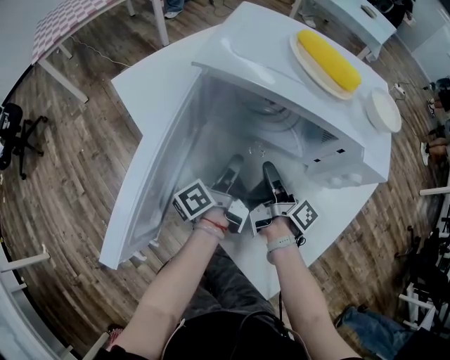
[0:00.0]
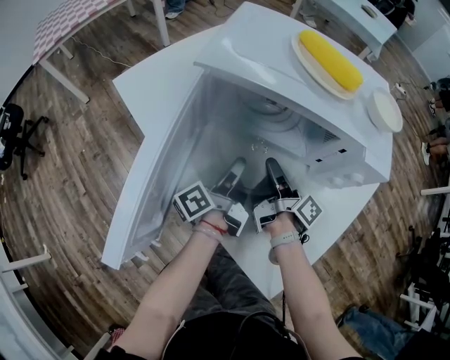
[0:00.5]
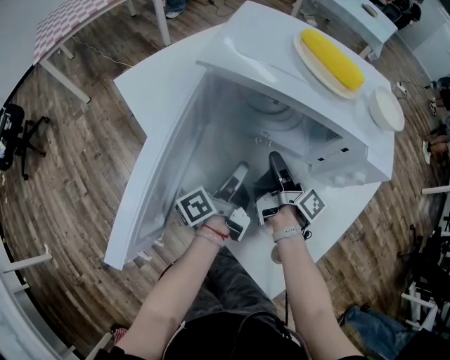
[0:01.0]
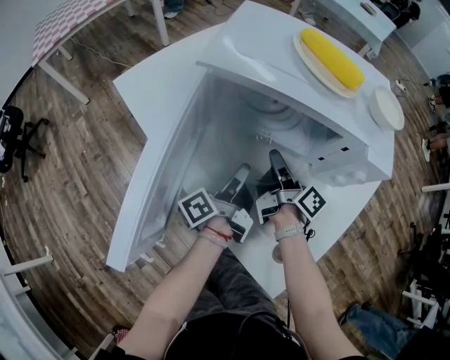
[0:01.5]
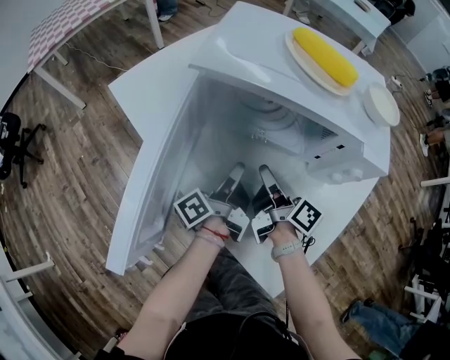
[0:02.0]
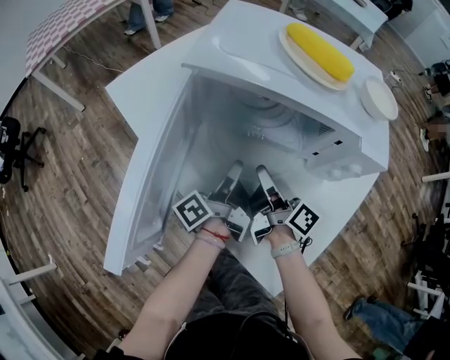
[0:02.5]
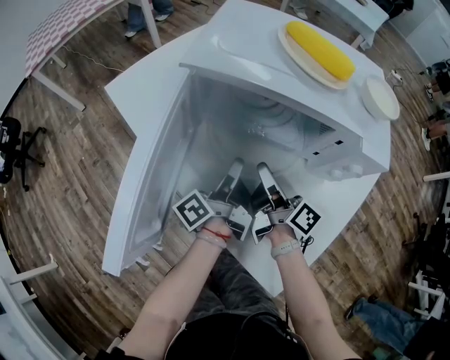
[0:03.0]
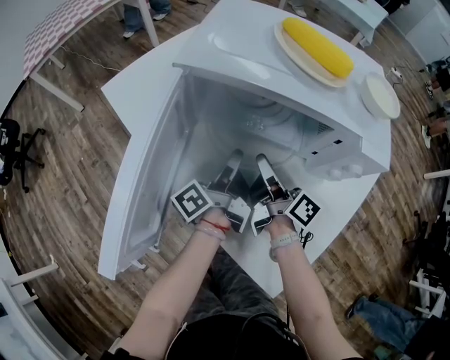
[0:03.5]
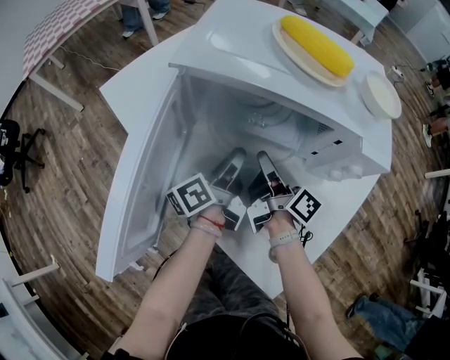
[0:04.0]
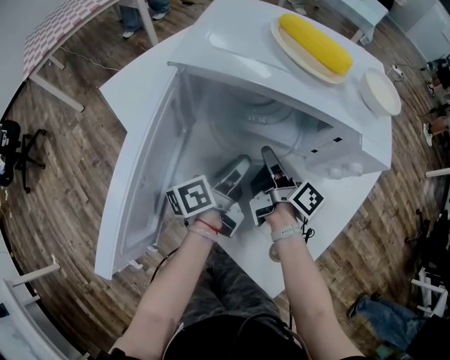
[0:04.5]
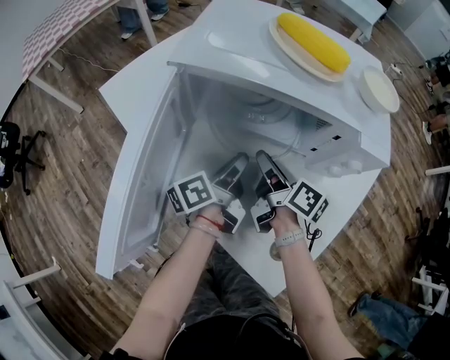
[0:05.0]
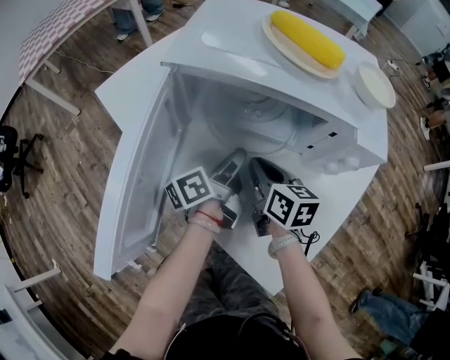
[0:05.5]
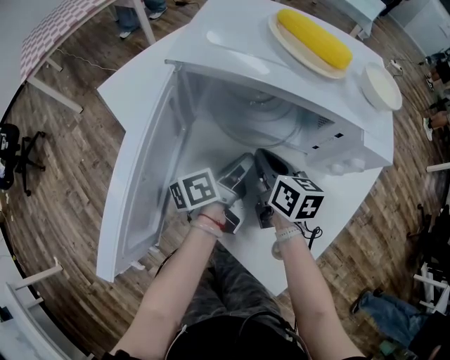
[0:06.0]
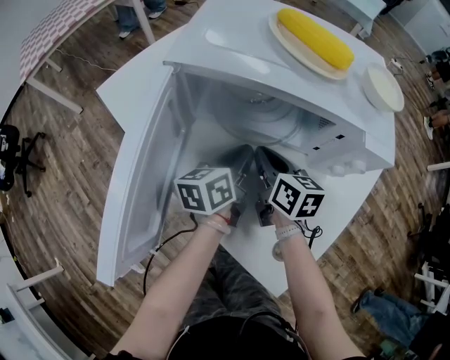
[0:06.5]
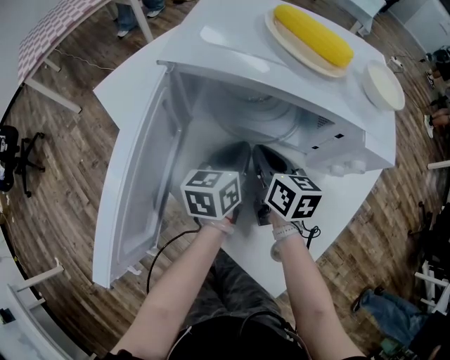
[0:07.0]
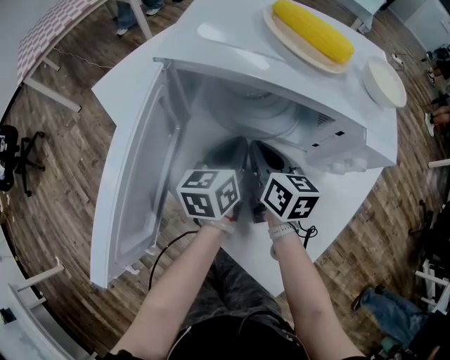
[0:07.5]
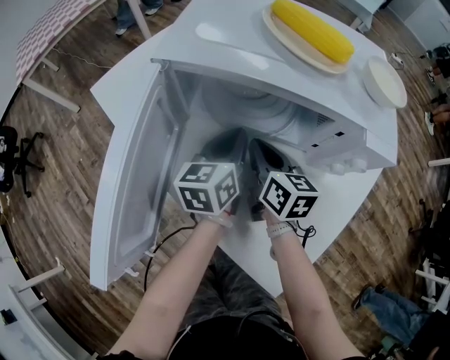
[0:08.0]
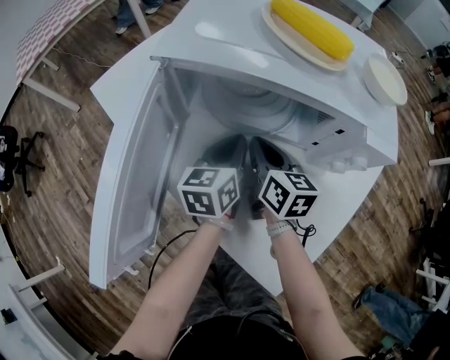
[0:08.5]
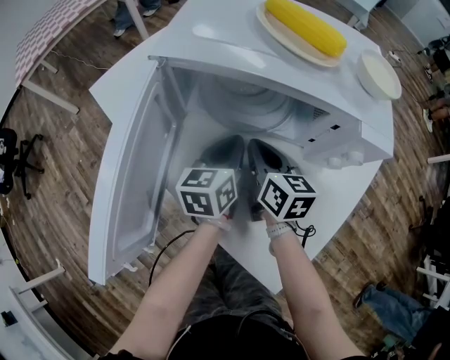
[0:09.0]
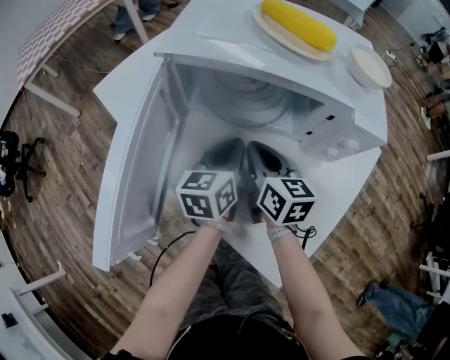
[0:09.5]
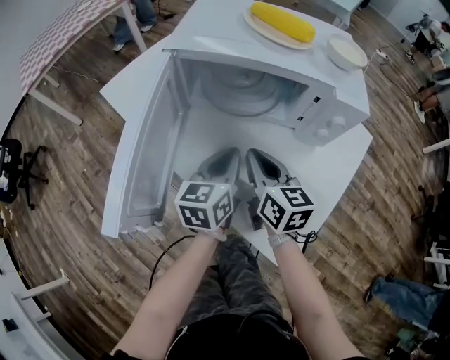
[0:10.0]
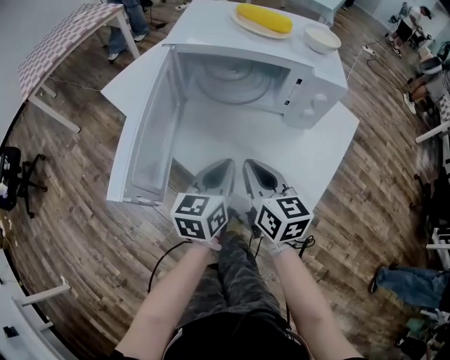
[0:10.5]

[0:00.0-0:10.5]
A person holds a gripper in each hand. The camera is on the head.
0:04.0 to 0:06.5: The right gripper rotates around the line of its fingers by some 40 degrees, counterclockwise from behind.
0:08.5 to 0:10.5: The right gripper moves some 20 cm.

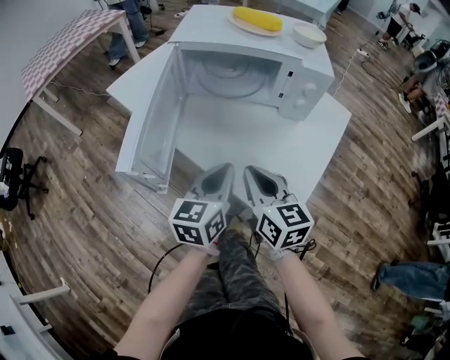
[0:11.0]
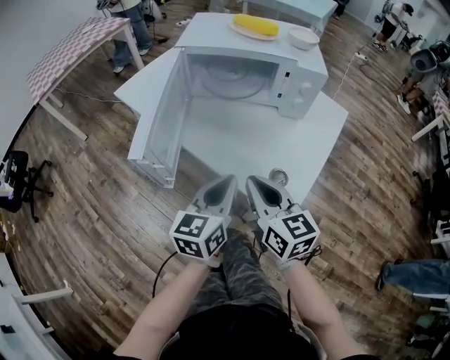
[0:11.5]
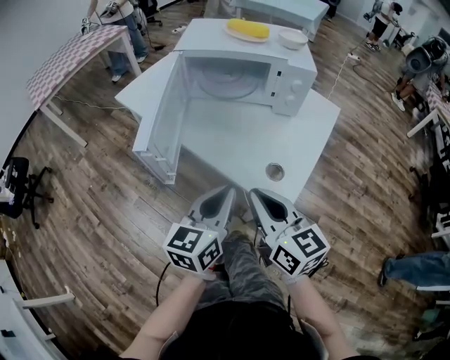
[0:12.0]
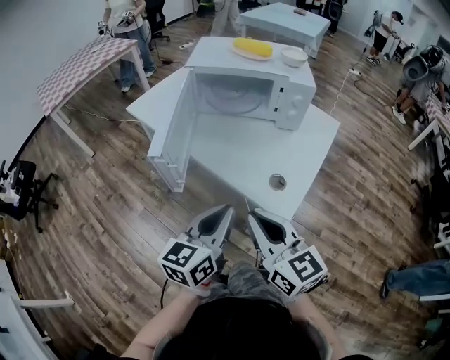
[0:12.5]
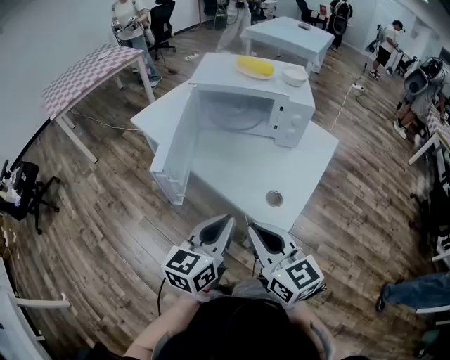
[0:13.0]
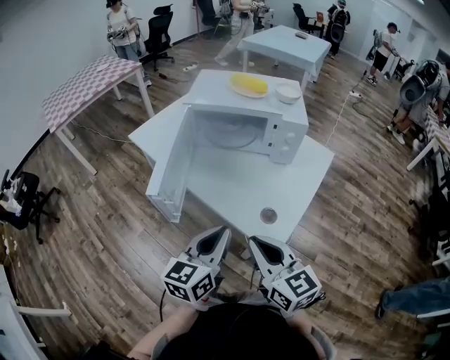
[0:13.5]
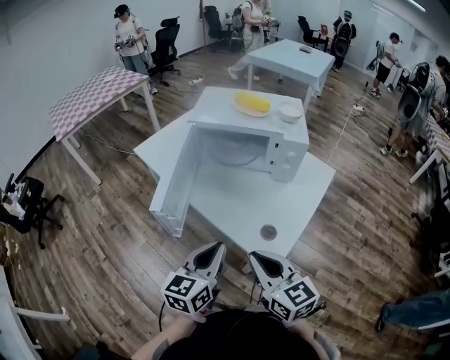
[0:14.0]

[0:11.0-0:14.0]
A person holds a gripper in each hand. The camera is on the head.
0:11.0 to 0:12.5: The right gripper changes place by approximately 20 cm.

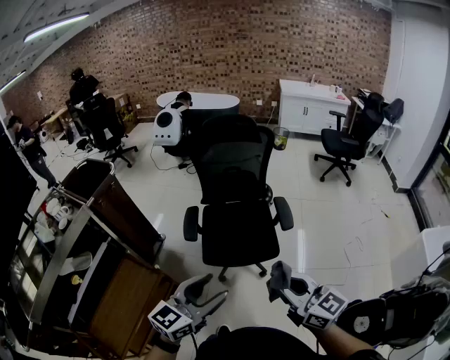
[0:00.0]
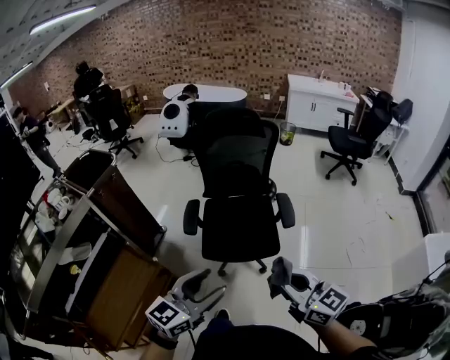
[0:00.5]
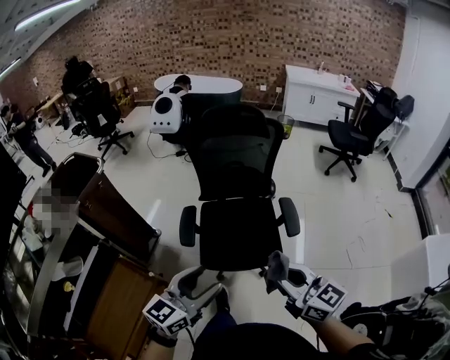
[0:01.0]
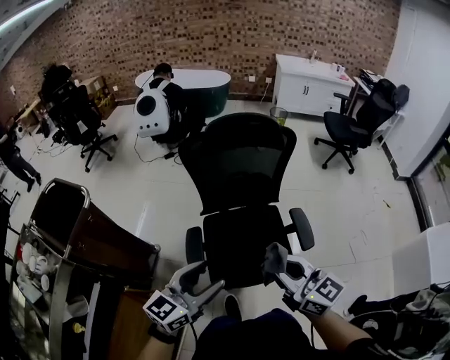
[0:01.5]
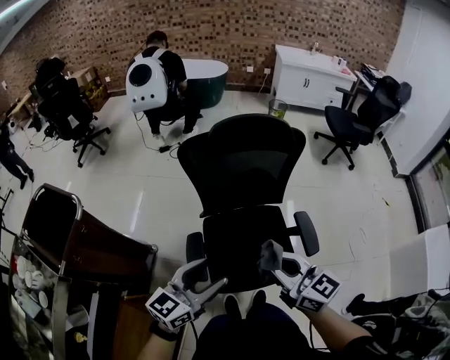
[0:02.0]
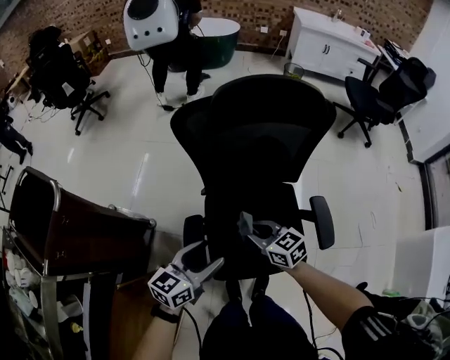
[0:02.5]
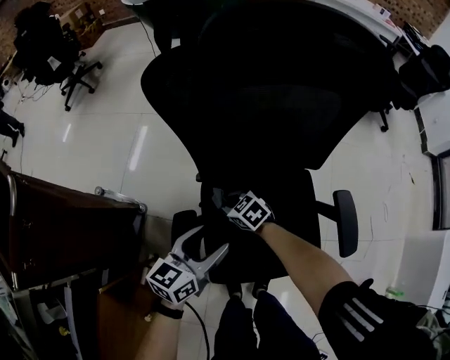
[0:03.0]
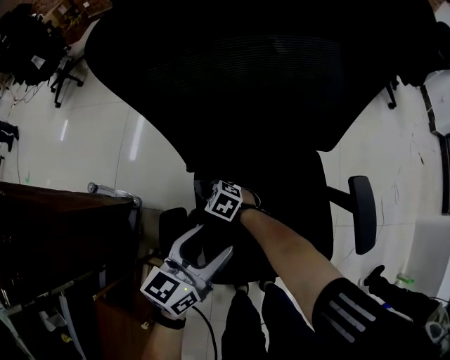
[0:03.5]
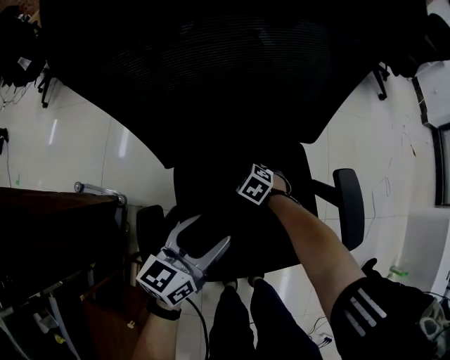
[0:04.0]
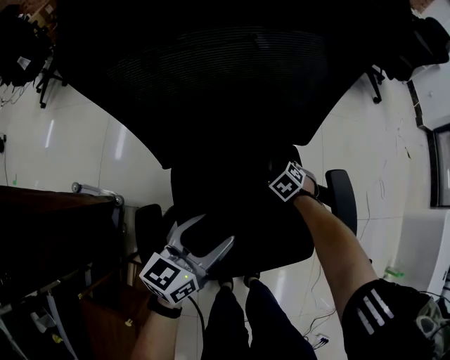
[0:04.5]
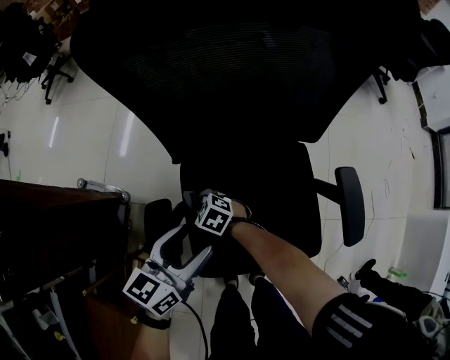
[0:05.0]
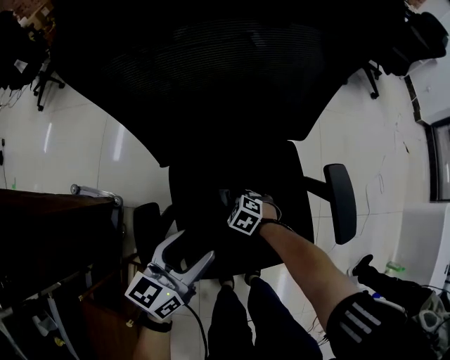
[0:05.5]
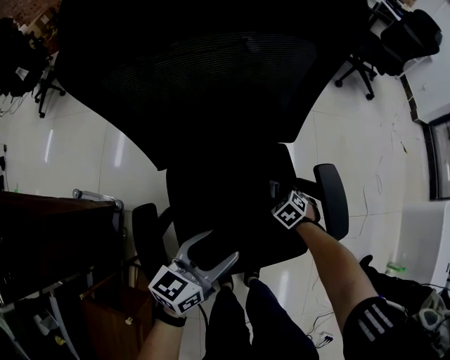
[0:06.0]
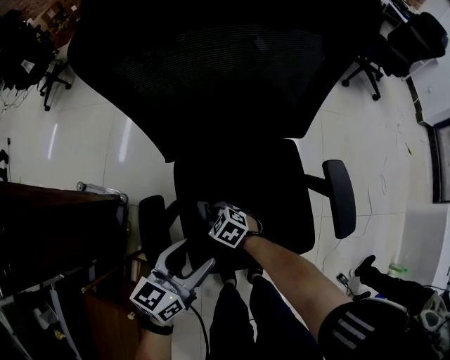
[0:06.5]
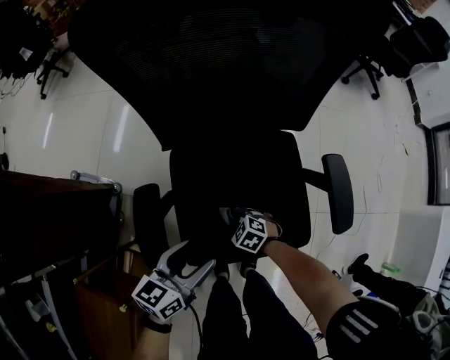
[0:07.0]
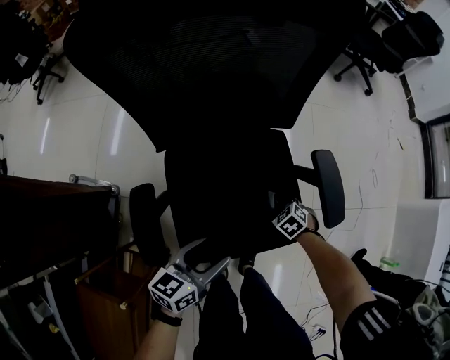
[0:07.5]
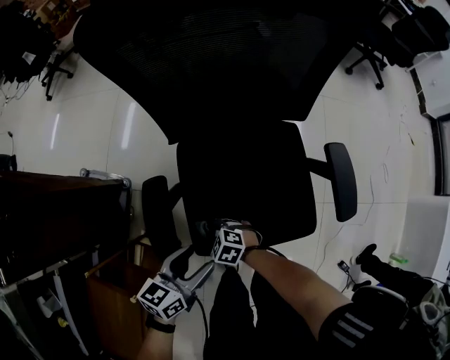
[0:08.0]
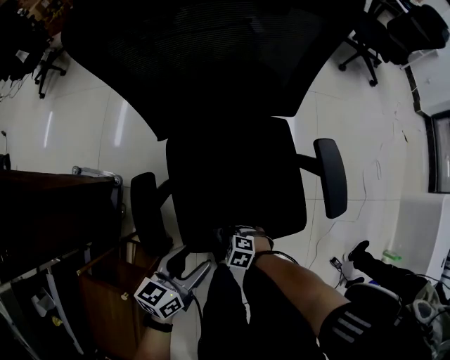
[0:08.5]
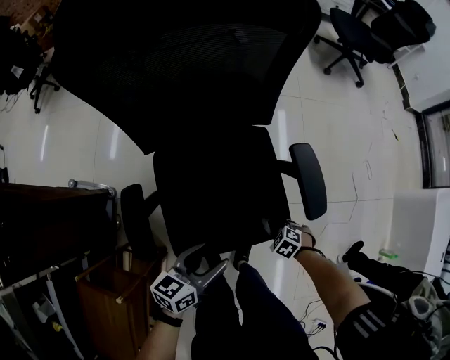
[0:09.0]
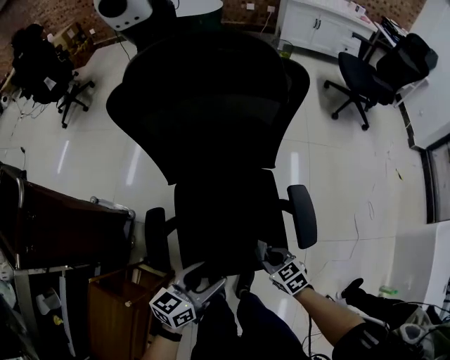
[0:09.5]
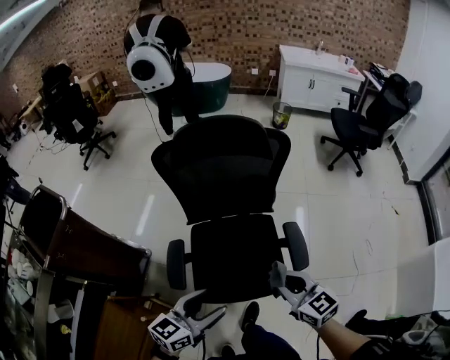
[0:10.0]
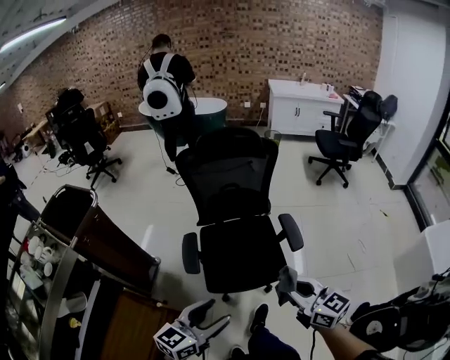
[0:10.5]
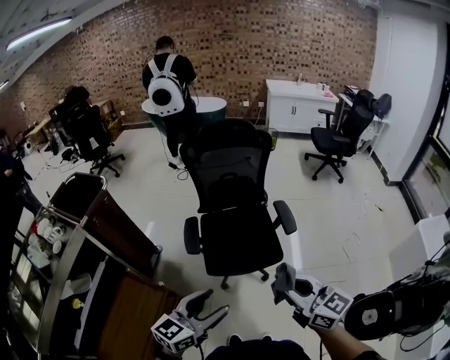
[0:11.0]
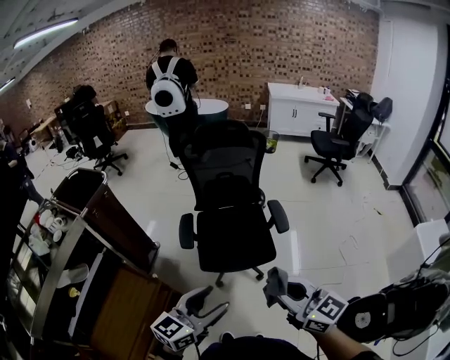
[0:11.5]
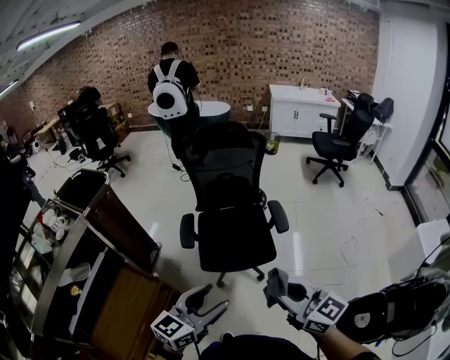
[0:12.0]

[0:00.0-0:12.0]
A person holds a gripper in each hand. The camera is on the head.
0:00.0 to 0:02.0: The two grippers go about 40 cm forward.
0:02.0 to 0:04.0: The right gripper is displaced downward and forward by approximately 70 cm, and points its fingers about 60 degrees further downward. The left gripper moves downward and forward, some 40 cm.
0:04.0 to 0:06.0: The left gripper moves about 10 cm, while the right gripper moves about 20 cm.
0:06.0 to 0:08.0: The left gripper shifts by some 15 cm; the right gripper swings up and down, approximately 5 cm each way, with 2 reversals, and swivels approximately 40 degrees.
0:08.0 to 0:10.0: The right gripper moves upward, roughly 50 cm, and tilts its fingers approximately 40 degrees upward. The left gripper travels upward by about 30 cm.
0:10.0 to 0:12.0: The right gripper is displaced backward and upward by some 40 cm, and turns by about 20 degrees. The left gripper shifts about 35 cm backward.

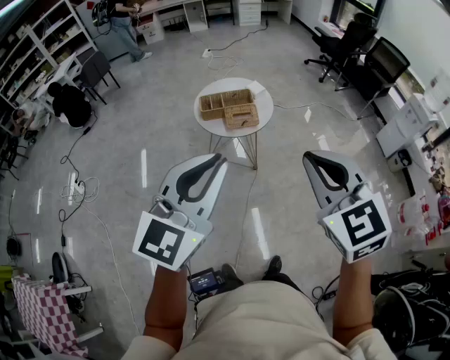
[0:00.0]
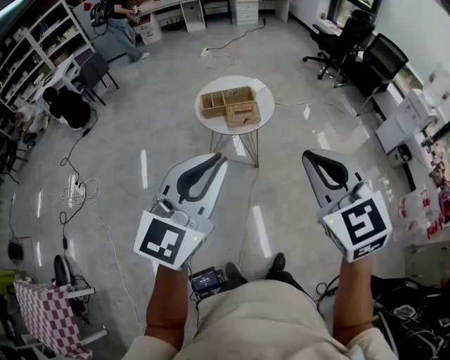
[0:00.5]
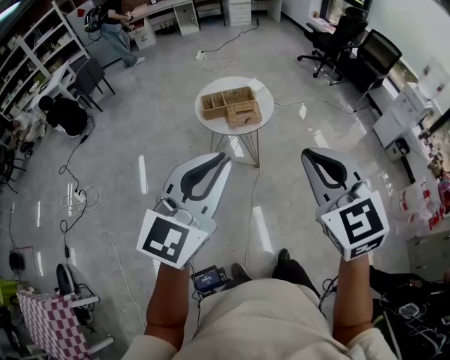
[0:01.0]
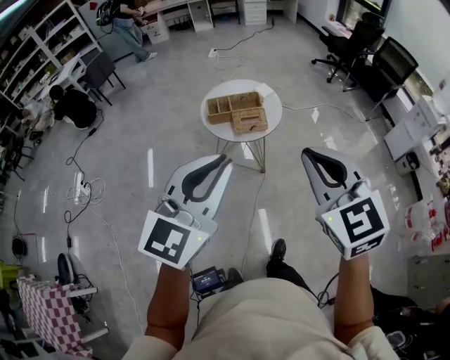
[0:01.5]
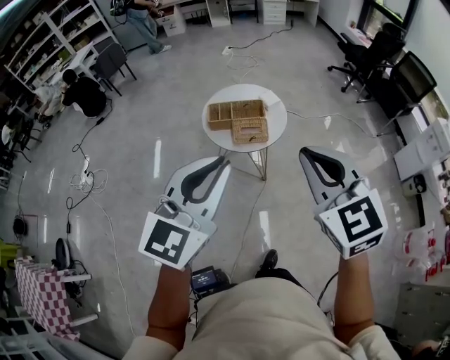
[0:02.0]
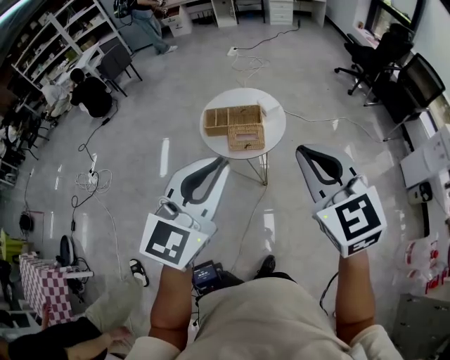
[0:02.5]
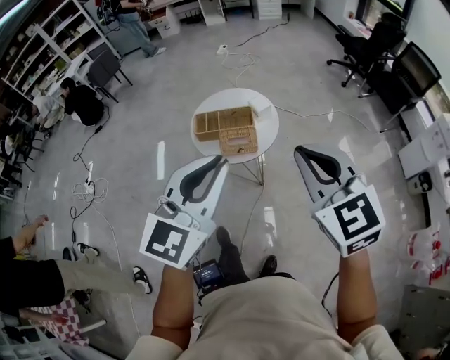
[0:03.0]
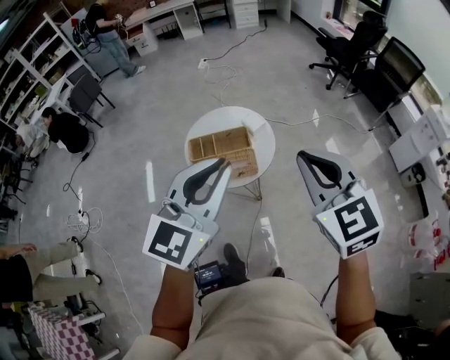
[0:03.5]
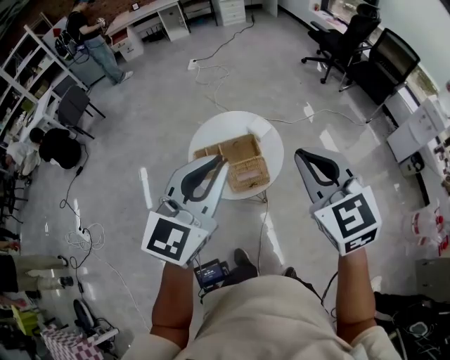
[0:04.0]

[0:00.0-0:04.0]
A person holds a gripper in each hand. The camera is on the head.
0:00.0 to 0:02.0: Both grippers move forward, approximately 15 cm.
0:02.0 to 0:04.0: Both grippers travel together forward, about 25 cm.
